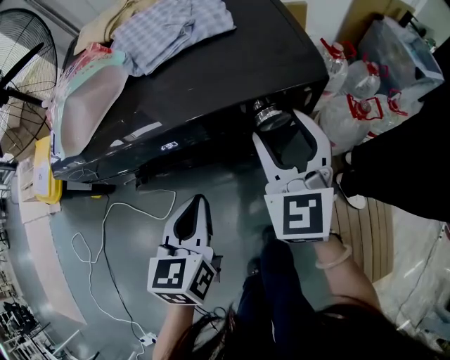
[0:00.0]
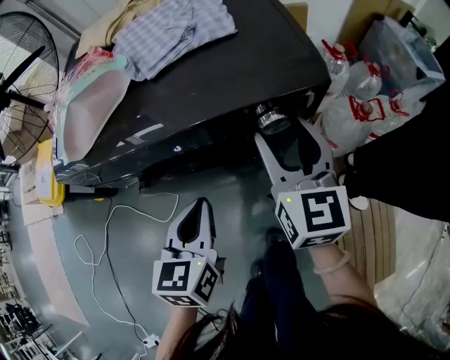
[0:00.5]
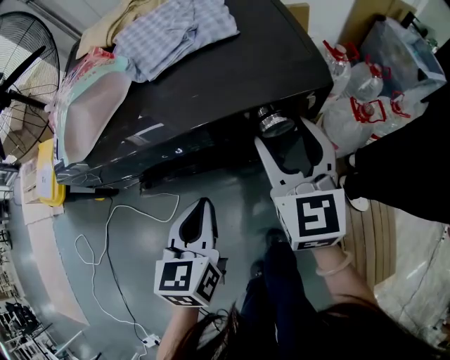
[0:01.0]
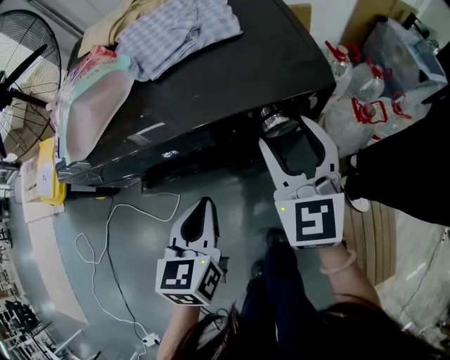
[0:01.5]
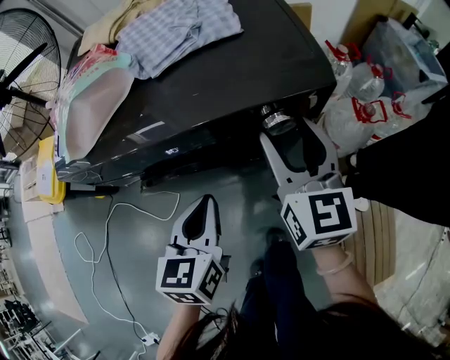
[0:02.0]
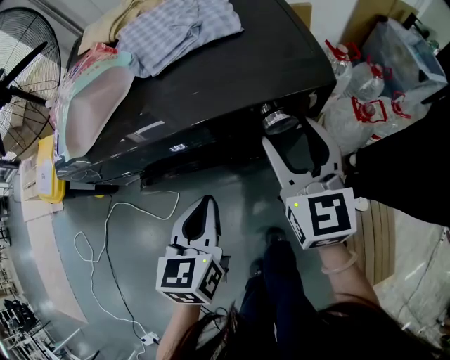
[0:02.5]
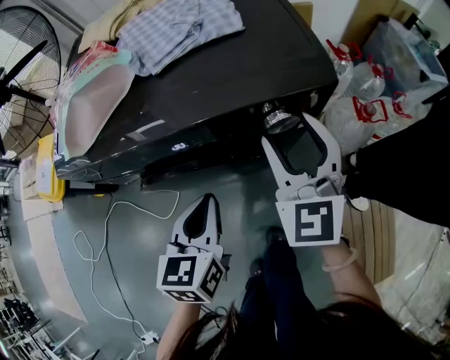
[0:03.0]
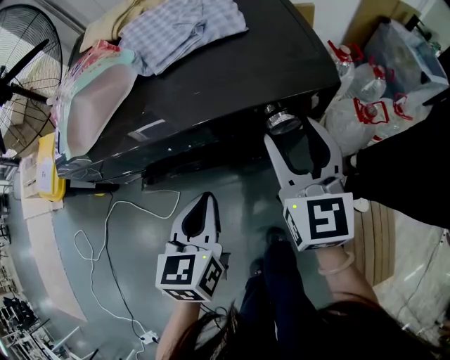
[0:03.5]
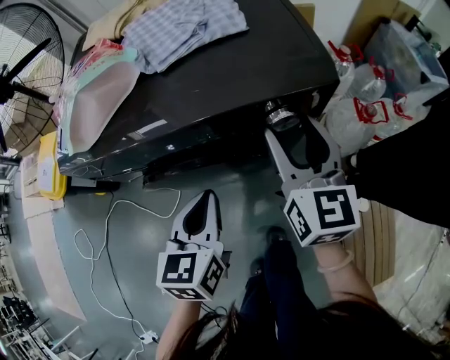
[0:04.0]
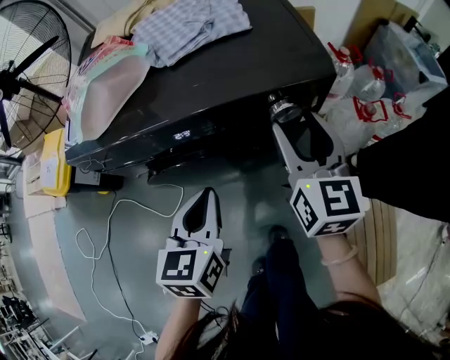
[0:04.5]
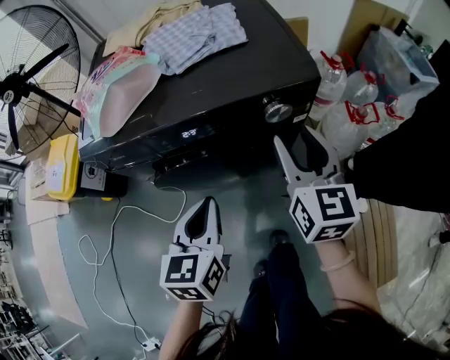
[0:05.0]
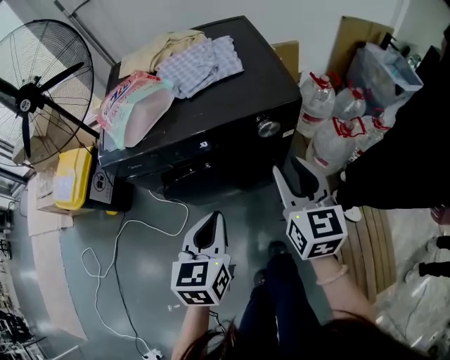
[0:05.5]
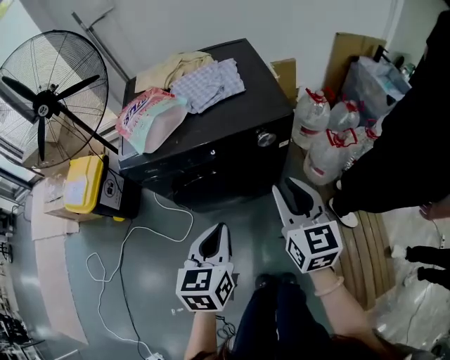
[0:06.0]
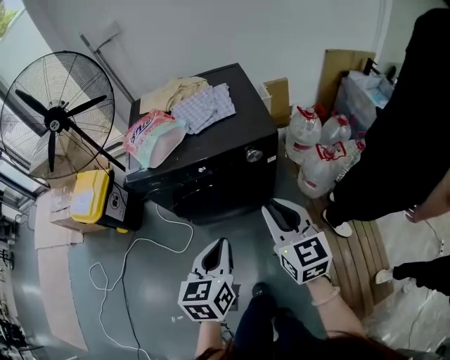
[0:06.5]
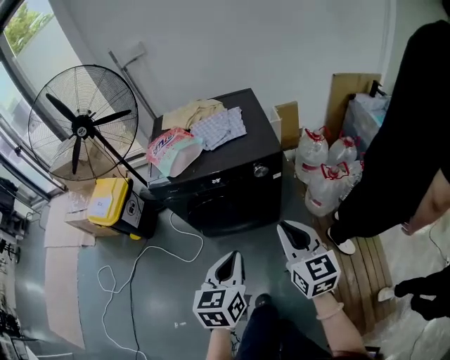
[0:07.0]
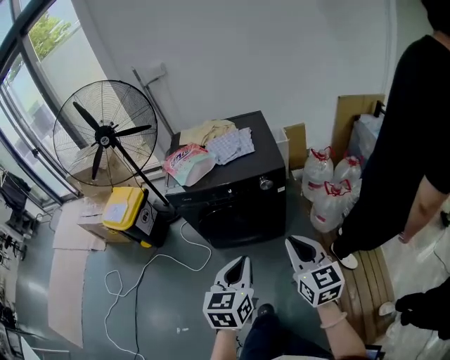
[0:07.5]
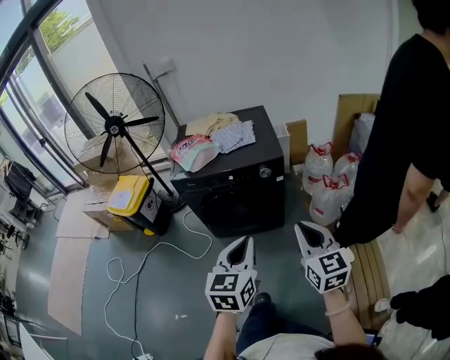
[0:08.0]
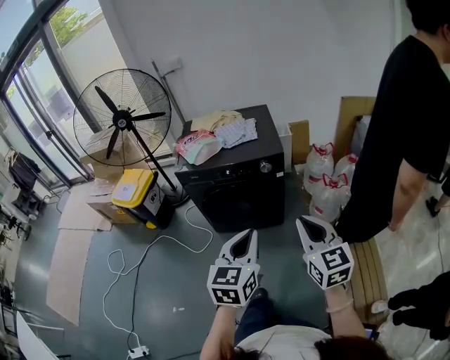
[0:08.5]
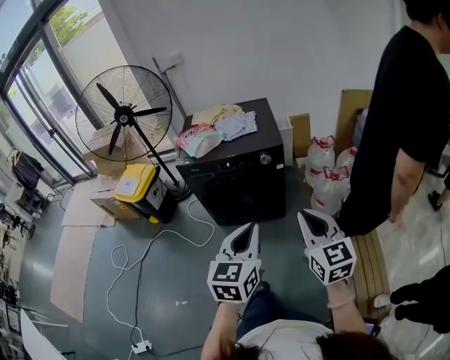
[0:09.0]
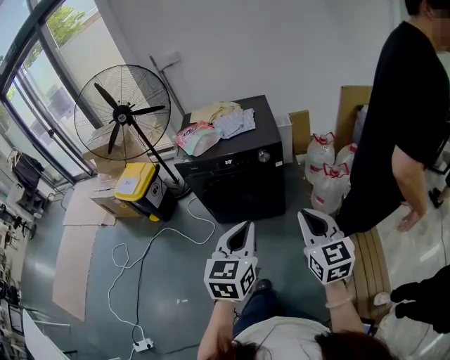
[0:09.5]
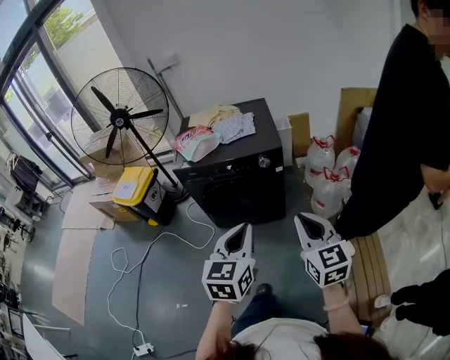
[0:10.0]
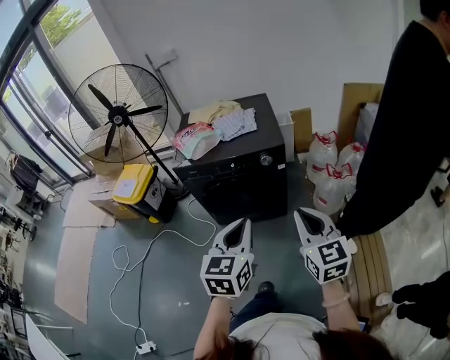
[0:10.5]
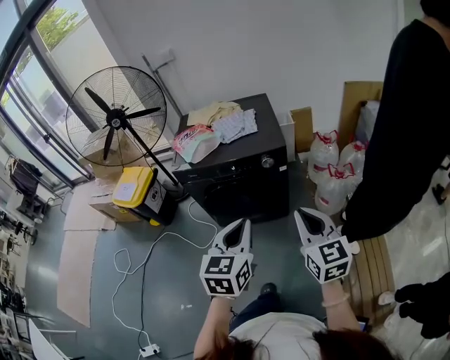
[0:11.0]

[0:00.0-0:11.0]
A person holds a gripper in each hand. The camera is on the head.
0:00.0 to 0:02.0: The right gripper turns by approximately 30 degrees.
0:03.5 to 0:05.5: The right gripper shifts roughly 10 cm backward. Meanwhile the left gripper is displaced backward and upward by roughly 15 cm.
0:05.5 to 0:07.5: The right gripper moves backward and upward, about 30 cm, and closes up. The left gripper shifts approximately 30 cm upward and backward.
0:07.5 to 0:09.0: The two grippers go roughly 10 cm backward and upward.
0:09.0 to 0:11.0: Both grippers travel together forward, approximately 10 cm.

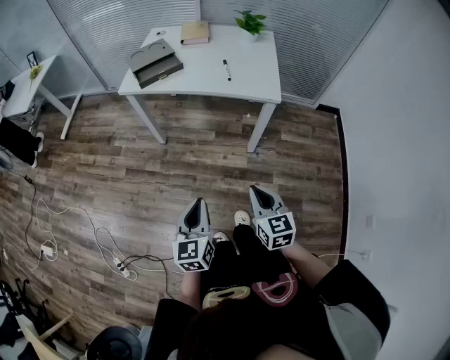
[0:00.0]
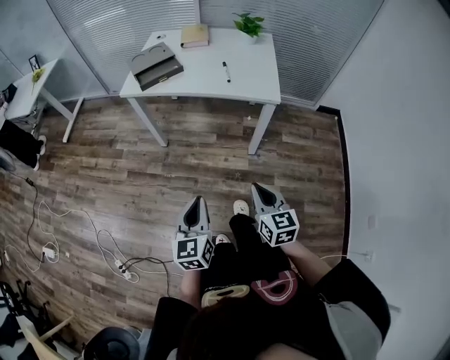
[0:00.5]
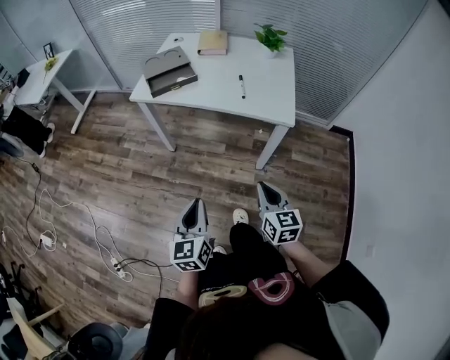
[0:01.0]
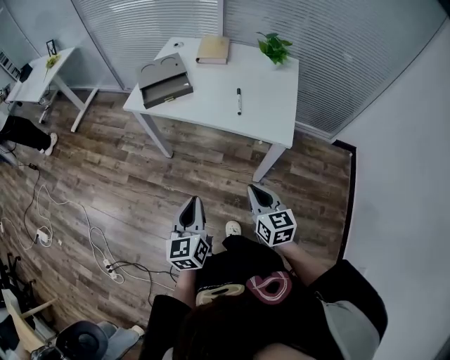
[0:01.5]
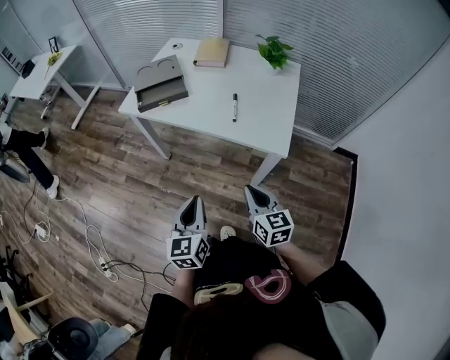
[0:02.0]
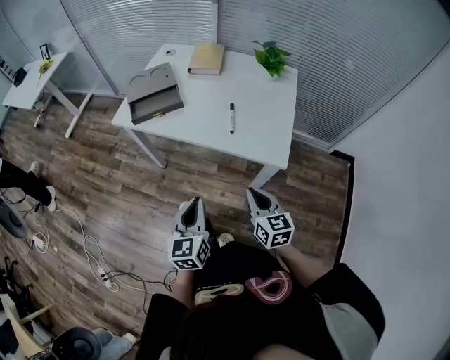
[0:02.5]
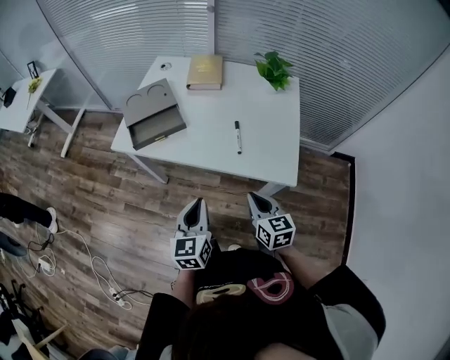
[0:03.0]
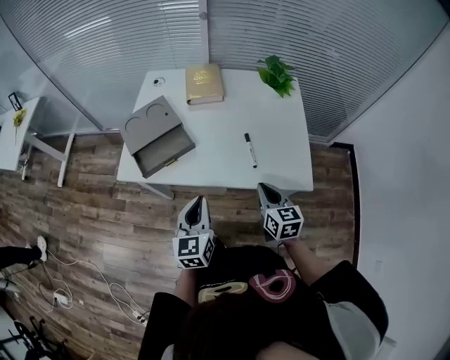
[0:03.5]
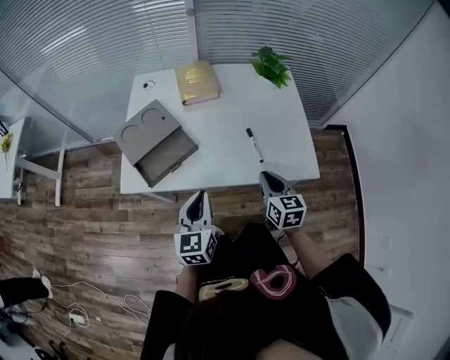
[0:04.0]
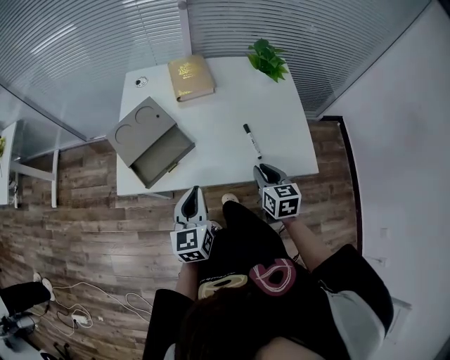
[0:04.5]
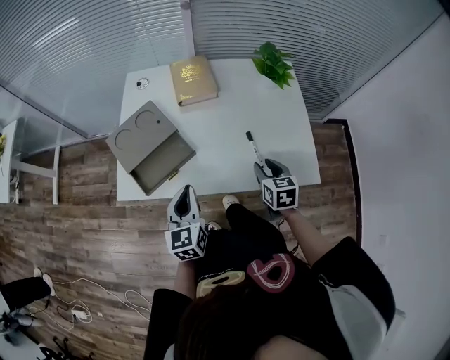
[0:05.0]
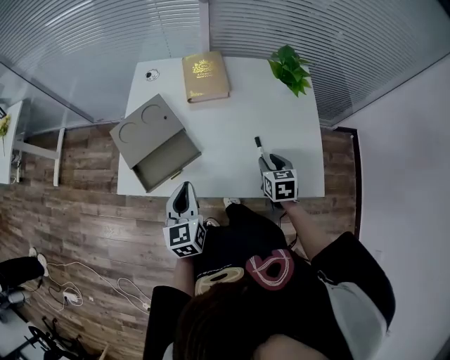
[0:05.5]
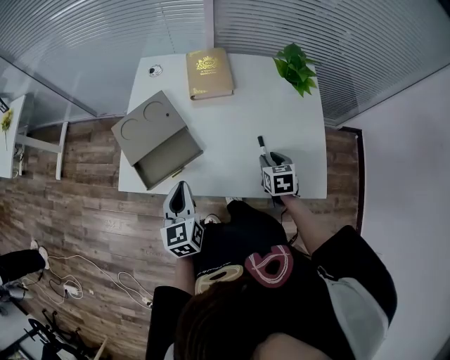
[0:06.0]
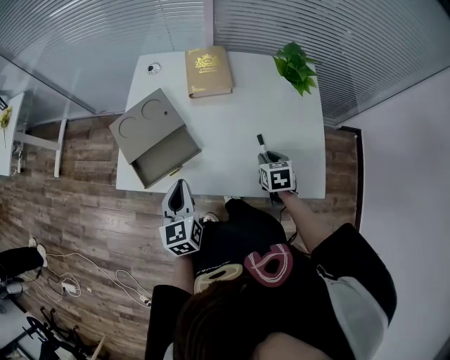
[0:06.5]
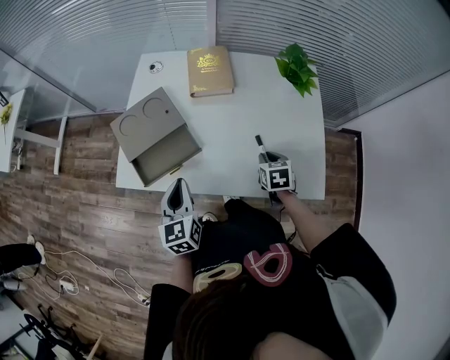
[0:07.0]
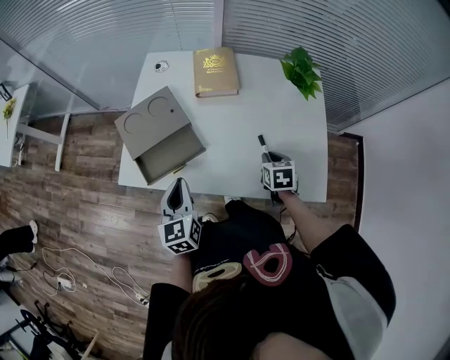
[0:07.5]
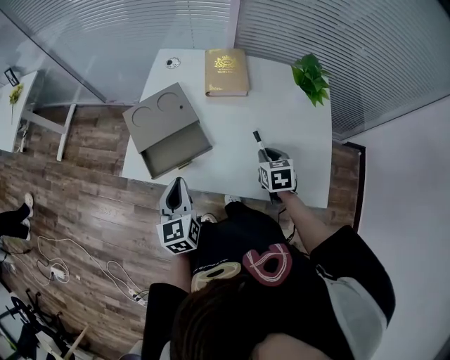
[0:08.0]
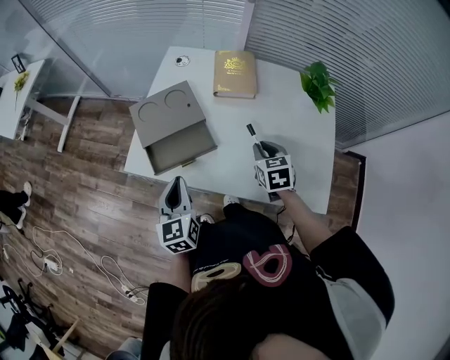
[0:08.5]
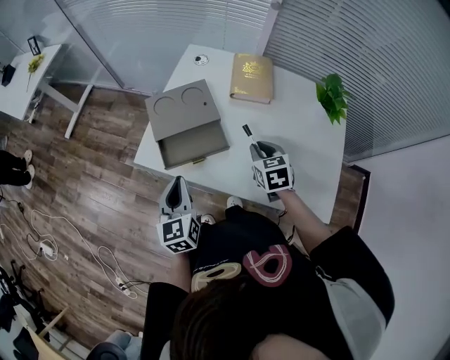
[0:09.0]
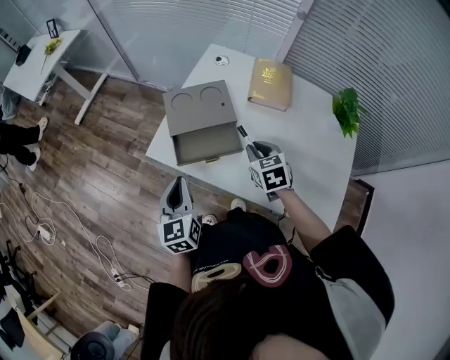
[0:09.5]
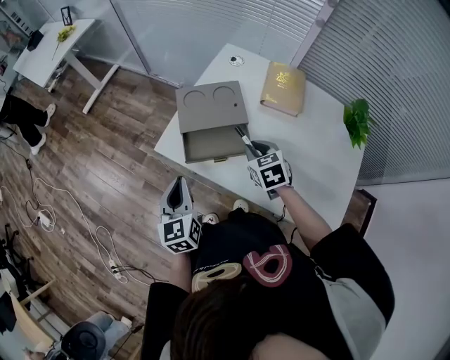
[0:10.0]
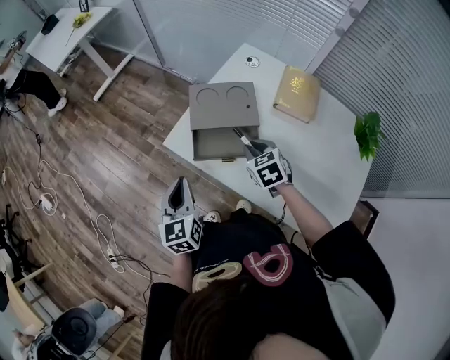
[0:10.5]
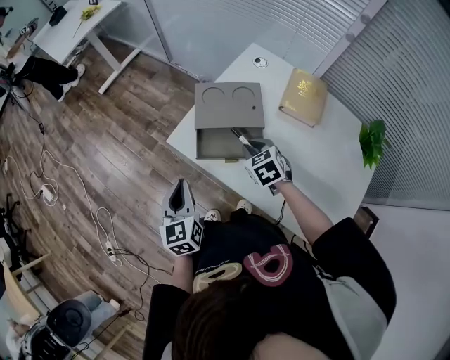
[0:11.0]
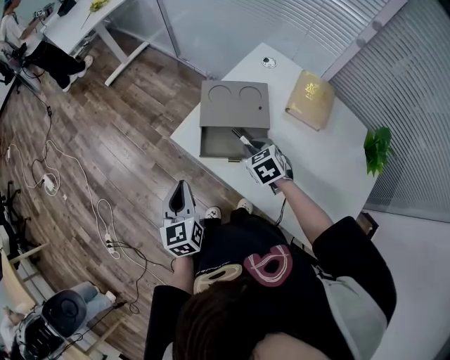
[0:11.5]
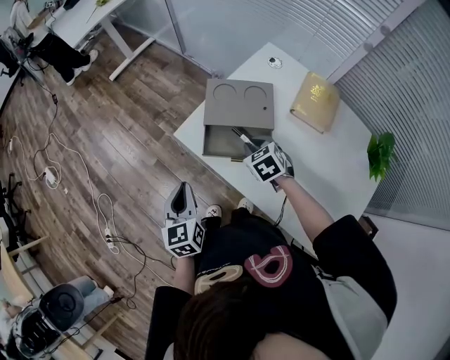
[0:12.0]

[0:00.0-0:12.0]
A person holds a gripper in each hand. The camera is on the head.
0:00.0 to 0:02.0: Both grippers move forward and to the right, some 25 cm.
0:02.0 to 0:04.0: The right gripper changes place by some 25 cm, and changes its angle by about 30 degrees; the left gripper ends up roughly 30 cm from where it was, and turns by about 20 degrees.
0:04.0 to 0:06.0: The right gripper travels forward and downward by roughly 15 cm, rotates roughly 30 degrees, and opens its fingers. The left gripper moves forward and to the left, about 10 cm.
0:06.0 to 0:08.0: The right gripper changes place by about 5 cm.
0:08.0 to 0:10.0: The left gripper moves to the left, roughly 10 cm; the right gripper moves to the left and forward, roughly 20 cm, and rotates roughly 30 degrees.
0:10.0 to 0:12.0: The left gripper moves approximately 5 cm. Meanwhile the right gripper moves to the left, approximately 5 cm, and changes its angle by approximately 20 degrees.

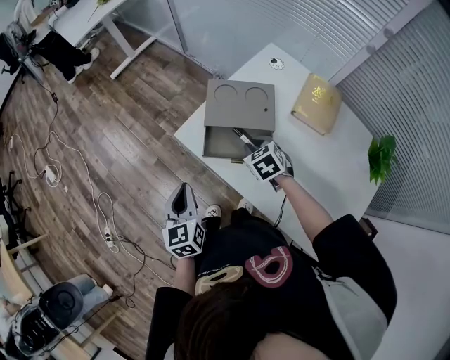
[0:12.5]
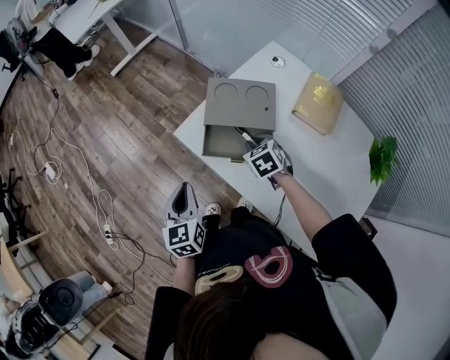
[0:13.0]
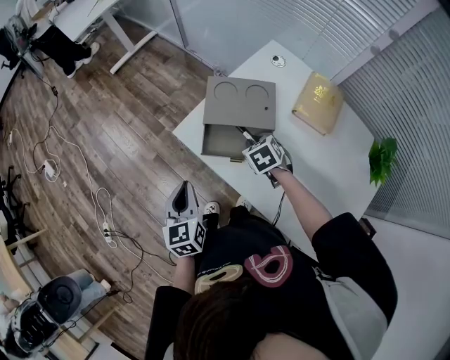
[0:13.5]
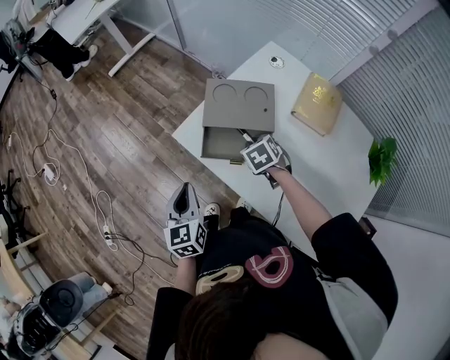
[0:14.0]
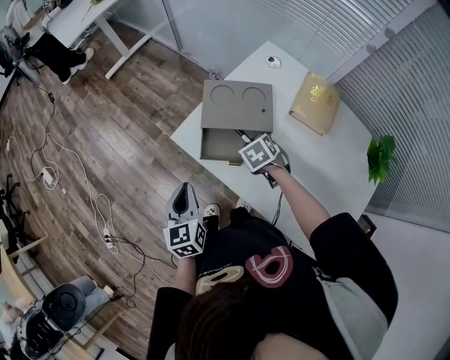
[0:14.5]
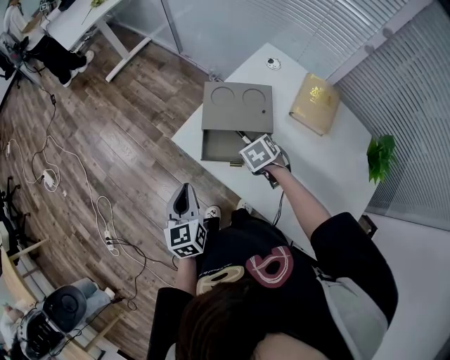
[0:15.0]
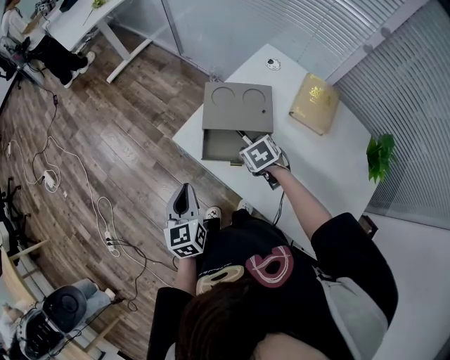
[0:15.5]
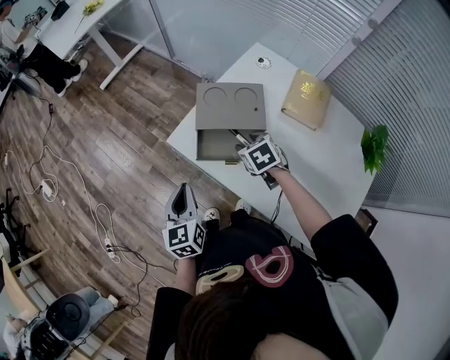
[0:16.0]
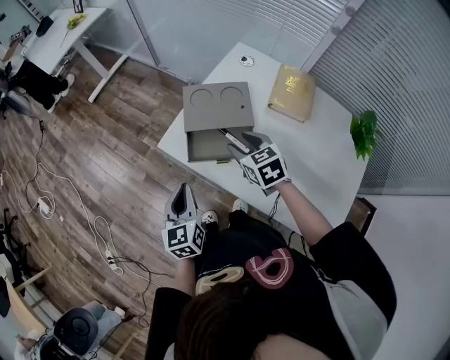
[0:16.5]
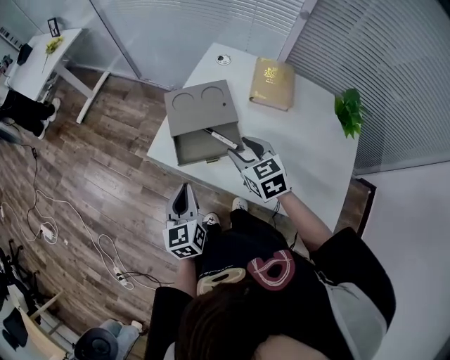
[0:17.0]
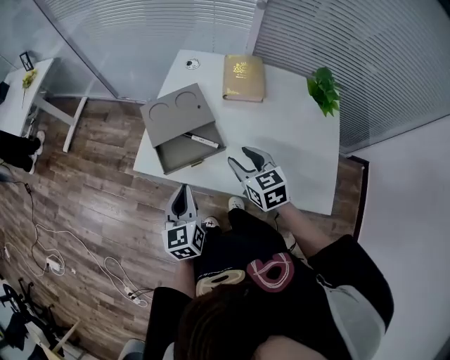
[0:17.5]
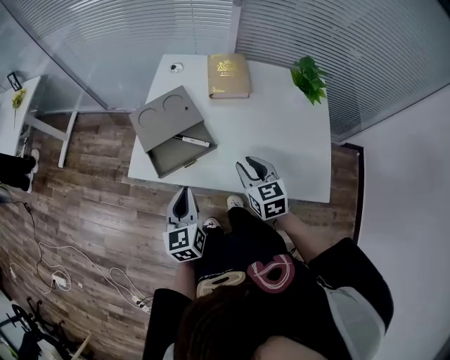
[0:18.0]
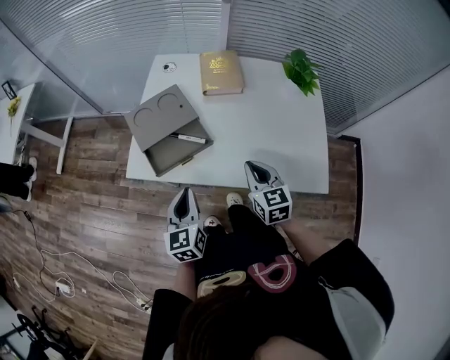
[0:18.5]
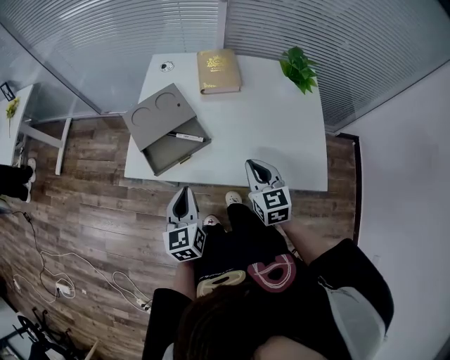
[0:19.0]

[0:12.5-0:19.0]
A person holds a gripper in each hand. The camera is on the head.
0:12.5 to 0:14.5: The grippers make only small movements.
0:14.5 to 0:17.0: The right gripper heads upward and backward, covering roughly 15 cm, tilts its fingers some 30 degrees upward, and opens up, while the left gripper goes about 5 cm to the right.
0:17.0 to 0:19.0: The right gripper shifts by some 15 cm, changes its angle by about 30 degrees, and closes up. The left gripper moves some 5 cm, and turns by about 20 degrees.
